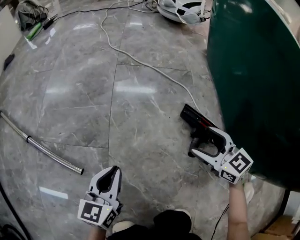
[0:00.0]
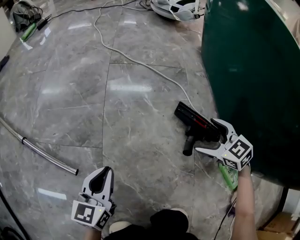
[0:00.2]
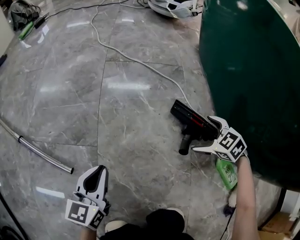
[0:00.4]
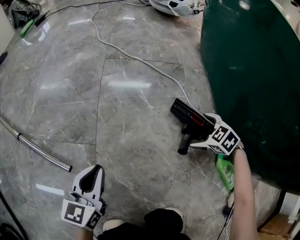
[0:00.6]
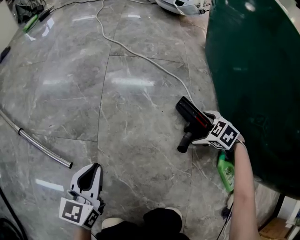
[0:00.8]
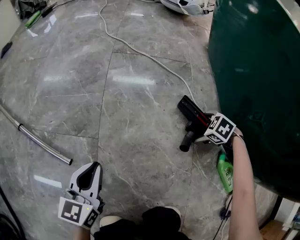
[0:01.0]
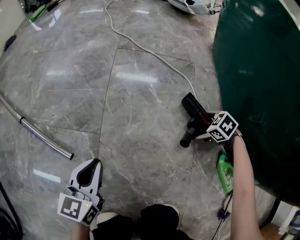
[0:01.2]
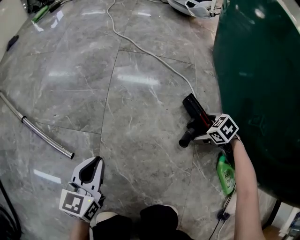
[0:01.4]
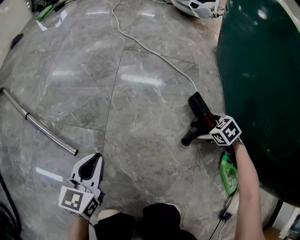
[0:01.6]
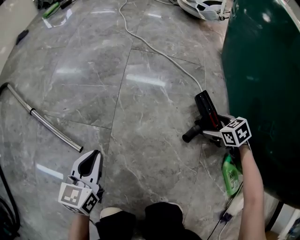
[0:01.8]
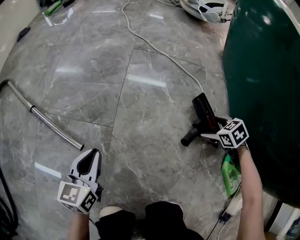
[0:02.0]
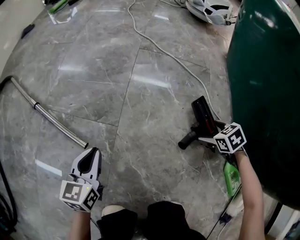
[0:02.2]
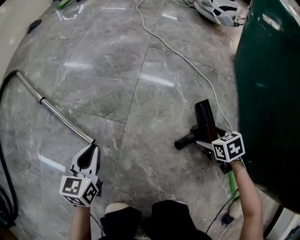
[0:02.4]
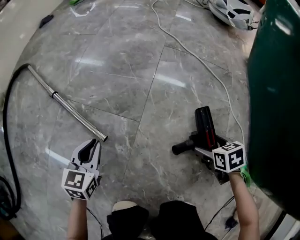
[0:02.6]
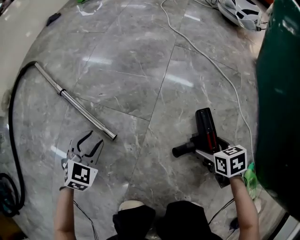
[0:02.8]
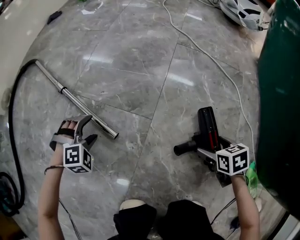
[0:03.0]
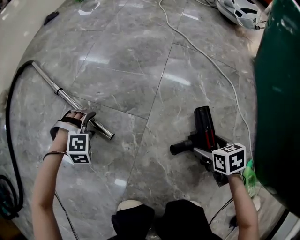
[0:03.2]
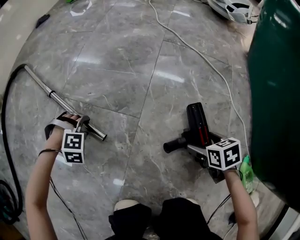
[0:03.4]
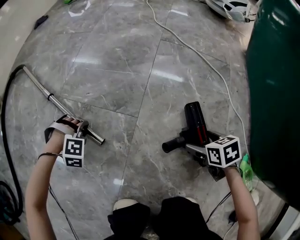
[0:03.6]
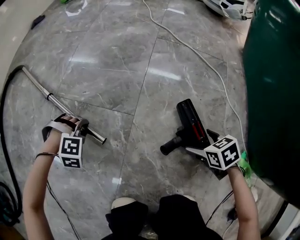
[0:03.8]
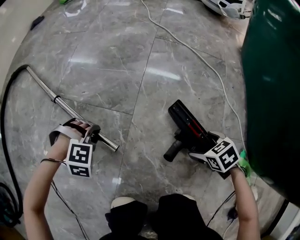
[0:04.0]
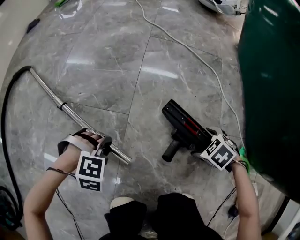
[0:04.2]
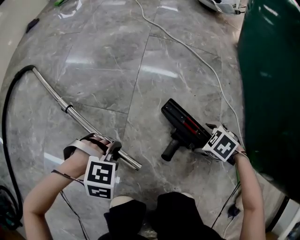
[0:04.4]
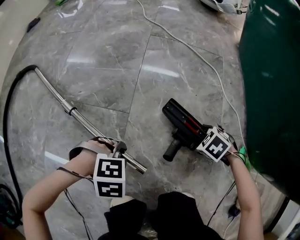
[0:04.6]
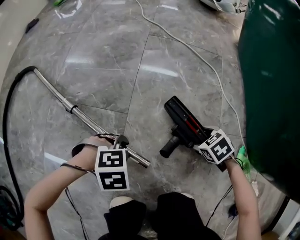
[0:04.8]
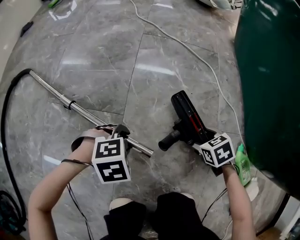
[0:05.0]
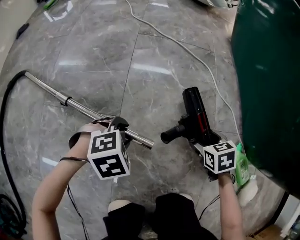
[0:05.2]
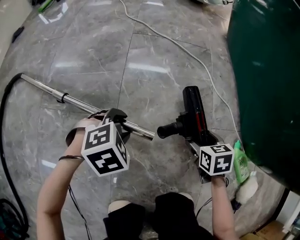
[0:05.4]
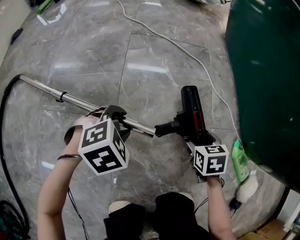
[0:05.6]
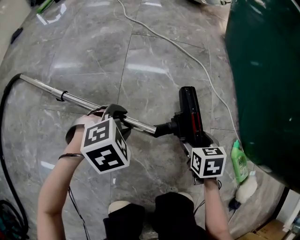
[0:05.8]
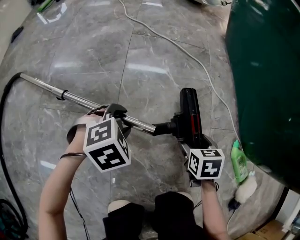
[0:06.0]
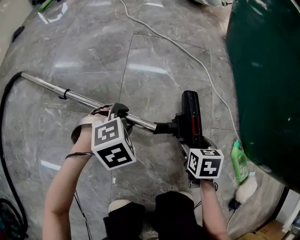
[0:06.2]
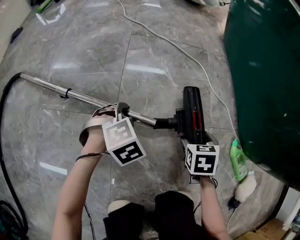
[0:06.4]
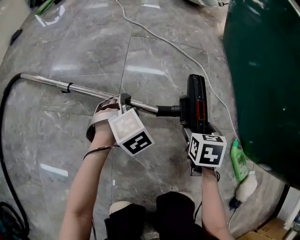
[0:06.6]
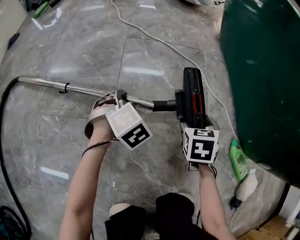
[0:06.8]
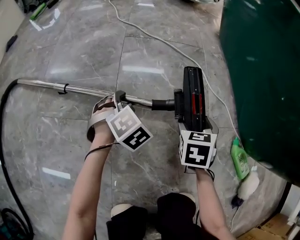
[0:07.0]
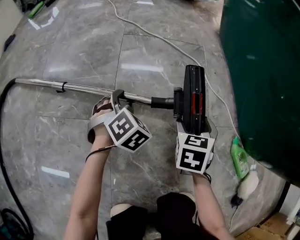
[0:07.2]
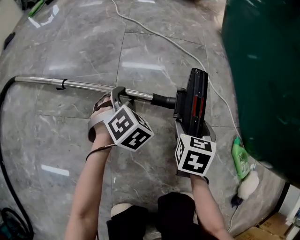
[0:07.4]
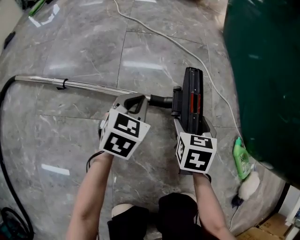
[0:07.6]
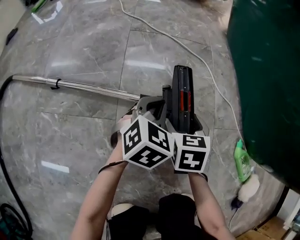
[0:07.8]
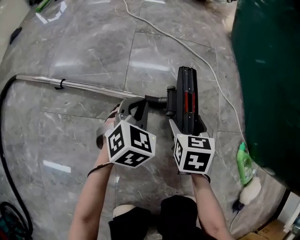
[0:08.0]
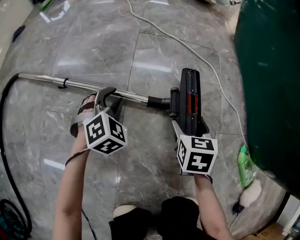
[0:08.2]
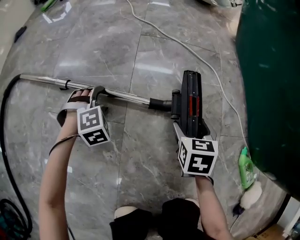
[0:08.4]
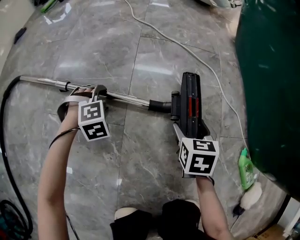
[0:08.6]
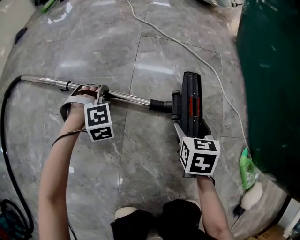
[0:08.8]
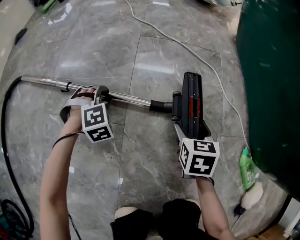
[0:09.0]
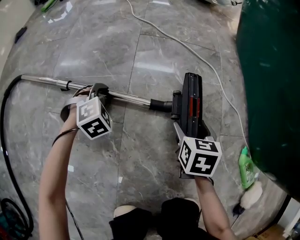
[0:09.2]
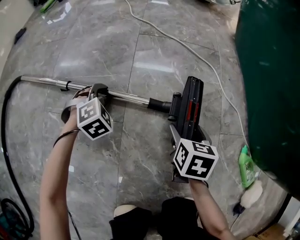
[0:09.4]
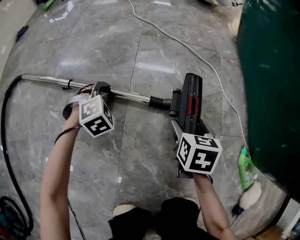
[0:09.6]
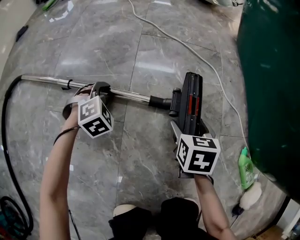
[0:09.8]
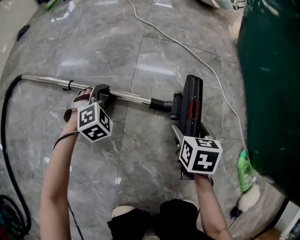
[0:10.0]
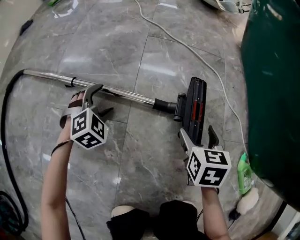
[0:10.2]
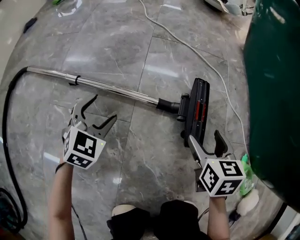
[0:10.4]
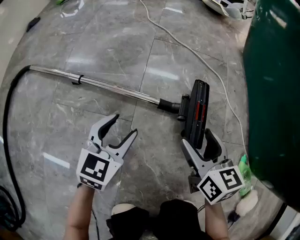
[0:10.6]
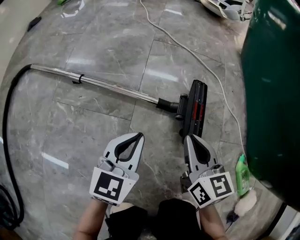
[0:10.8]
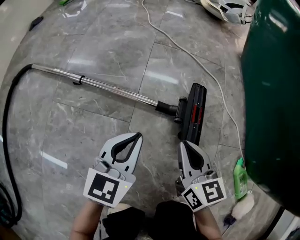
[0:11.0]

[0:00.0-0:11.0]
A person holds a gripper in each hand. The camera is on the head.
0:00.0 to 0:01.6: The right gripper shifts approximately 15 cm downward, points its fingers about 40 degrees further downward, and opens up.
0:01.6 to 0:03.2: The right gripper moves roughly 20 cm, and rotates roughly 20 degrees. Meanwhile the left gripper shifts by approximately 25 cm, rotates around the line of its fingers by approximately 80 degrees, clockwise from behind, and opens up.
0:03.2 to 0:04.8: The left gripper moves roughly 25 cm, rotates approximately 30 degrees, and closes up, while the right gripper moves approximately 5 cm, and swivels roughly 20 degrees.
0:04.8 to 0:06.2: The right gripper rotates some 50 degrees. The left gripper ends up approximately 15 cm from where it was, and rotates approximately 20 degrees.
0:06.2 to 0:07.8: The left gripper moves forward and to the right, about 10 cm, changes its angle by approximately 40 degrees, and closes up; the right gripper travels to the left and forward by some 10 cm.
0:07.8 to 0:09.4: The left gripper shifts approximately 20 cm to the left, rotates roughly 40 degrees, and opens.
0:09.4 to 0:11.0: The left gripper heads upward, backward and to the right, covering some 25 cm, tips its fingers upward by roughly 40 degrees, and closes. Meanwhile the right gripper travels upward and backward by approximately 10 cm, turns by approximately 40 degrees, and closes.

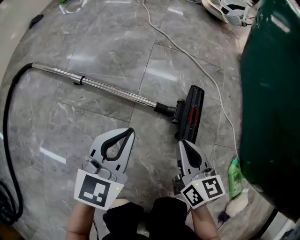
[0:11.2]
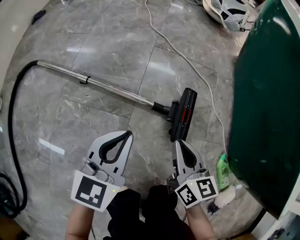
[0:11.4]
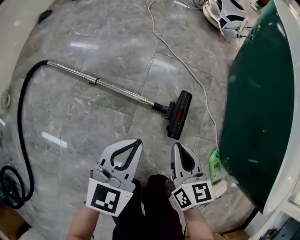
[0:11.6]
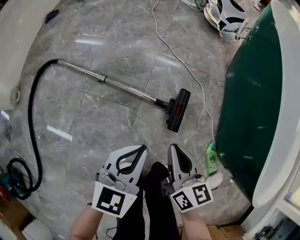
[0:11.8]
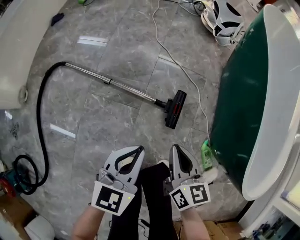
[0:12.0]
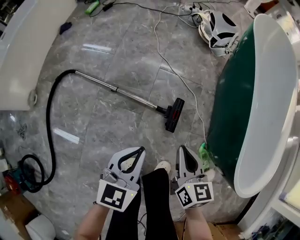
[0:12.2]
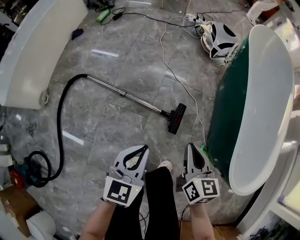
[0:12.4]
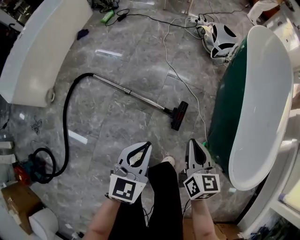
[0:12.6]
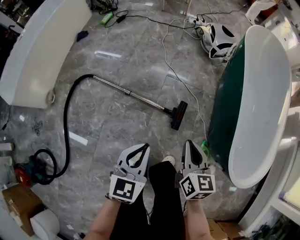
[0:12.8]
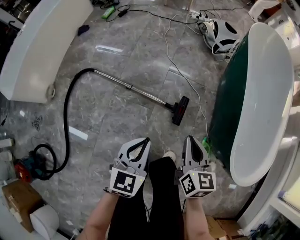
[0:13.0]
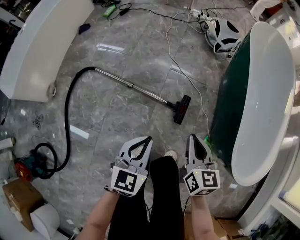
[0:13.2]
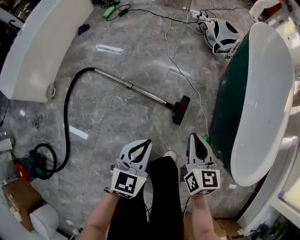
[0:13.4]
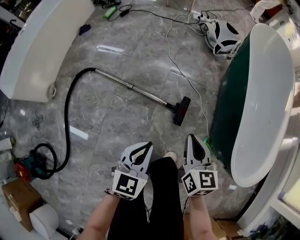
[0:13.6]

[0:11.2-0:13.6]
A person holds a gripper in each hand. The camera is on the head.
0:11.2 to 0:12.4: Both grippers move upward, some 50 cm.
0:12.4 to 0:13.6: The right gripper shifts by about 5 cm.

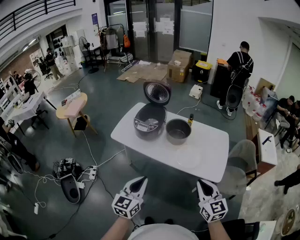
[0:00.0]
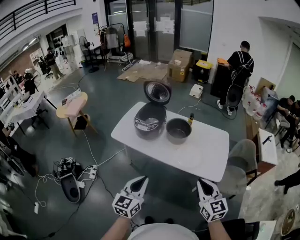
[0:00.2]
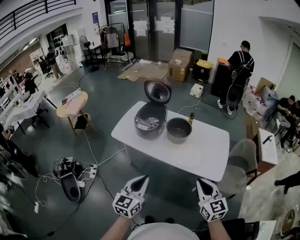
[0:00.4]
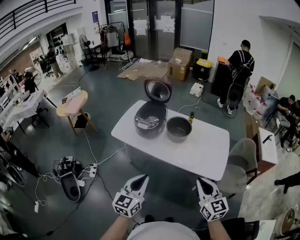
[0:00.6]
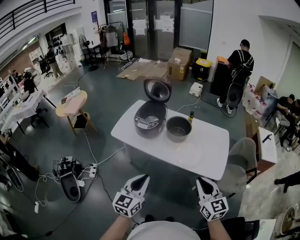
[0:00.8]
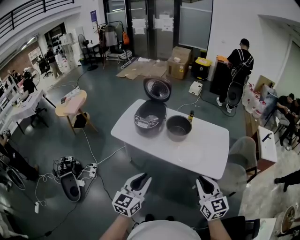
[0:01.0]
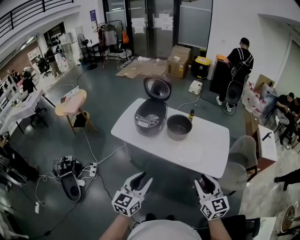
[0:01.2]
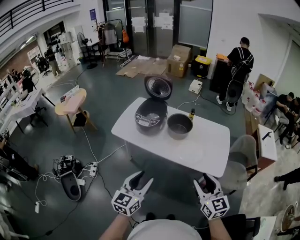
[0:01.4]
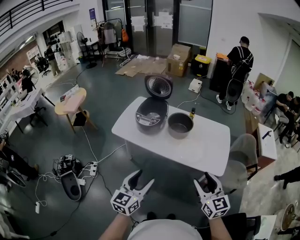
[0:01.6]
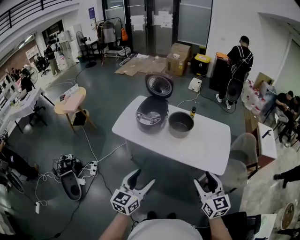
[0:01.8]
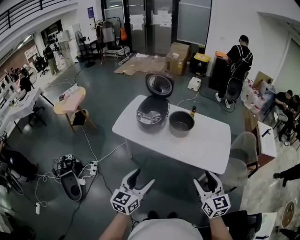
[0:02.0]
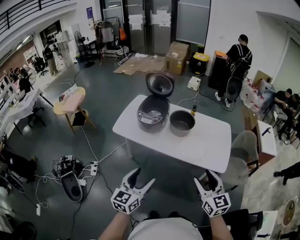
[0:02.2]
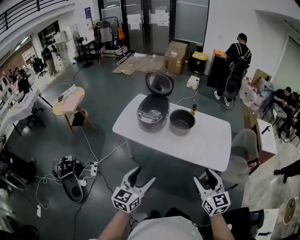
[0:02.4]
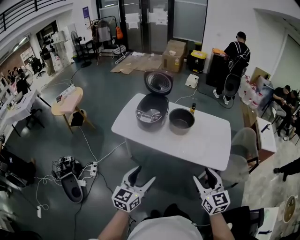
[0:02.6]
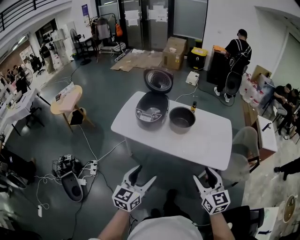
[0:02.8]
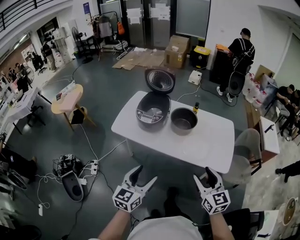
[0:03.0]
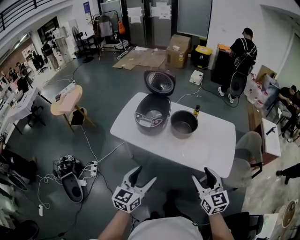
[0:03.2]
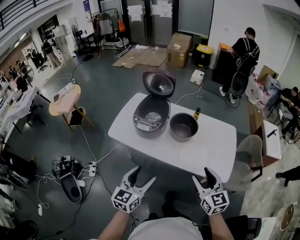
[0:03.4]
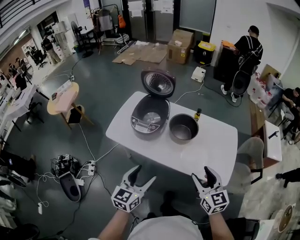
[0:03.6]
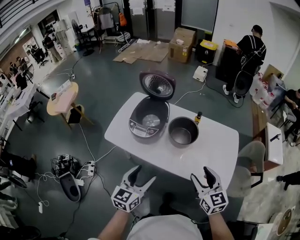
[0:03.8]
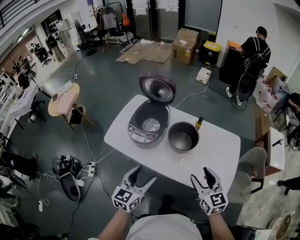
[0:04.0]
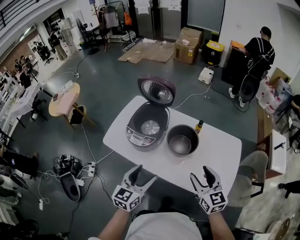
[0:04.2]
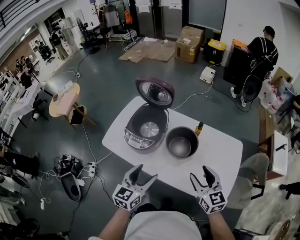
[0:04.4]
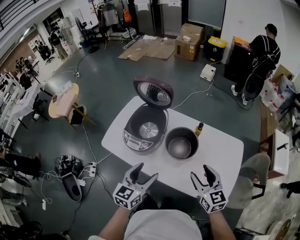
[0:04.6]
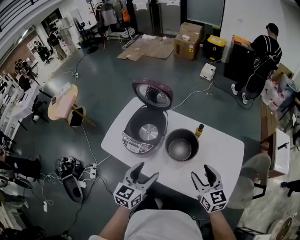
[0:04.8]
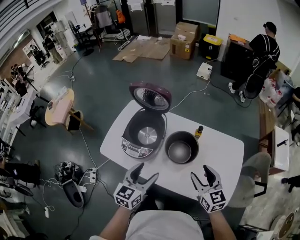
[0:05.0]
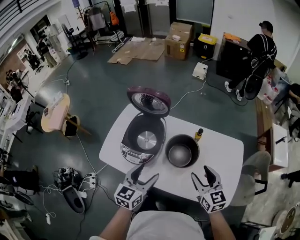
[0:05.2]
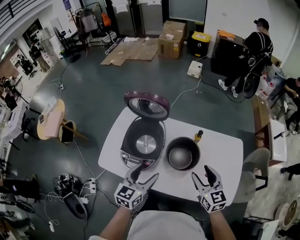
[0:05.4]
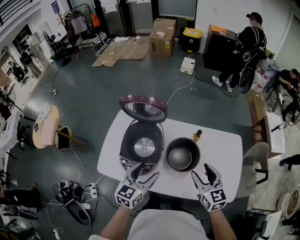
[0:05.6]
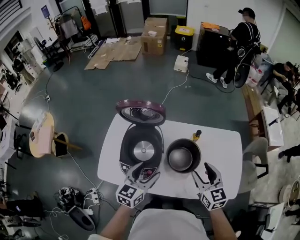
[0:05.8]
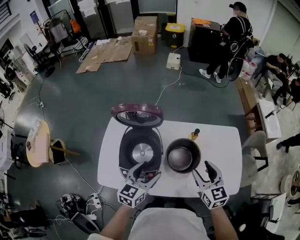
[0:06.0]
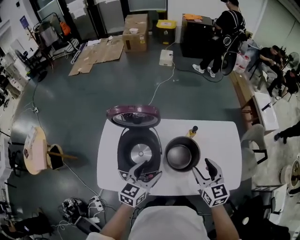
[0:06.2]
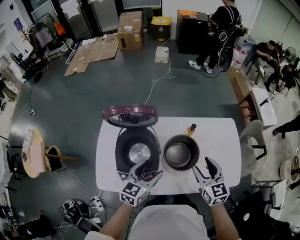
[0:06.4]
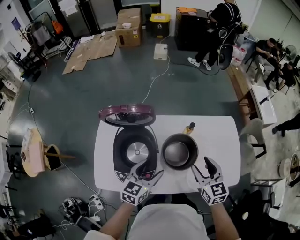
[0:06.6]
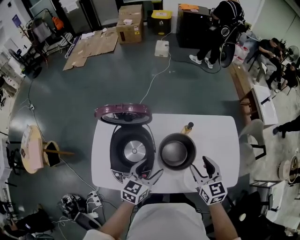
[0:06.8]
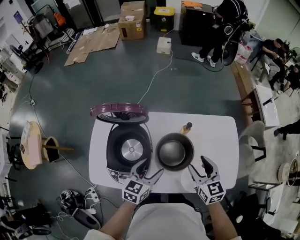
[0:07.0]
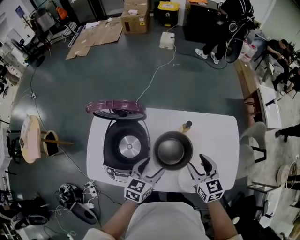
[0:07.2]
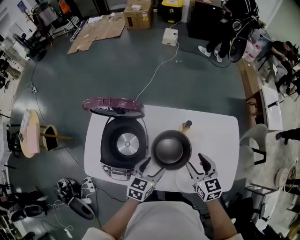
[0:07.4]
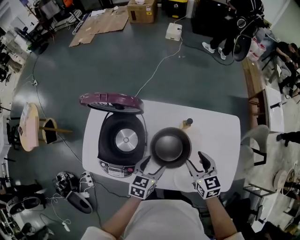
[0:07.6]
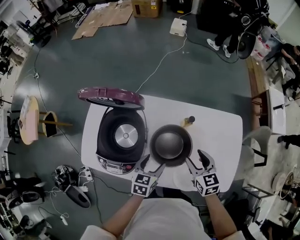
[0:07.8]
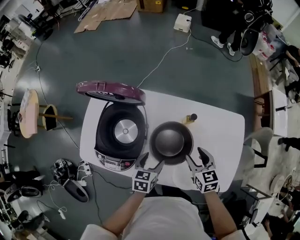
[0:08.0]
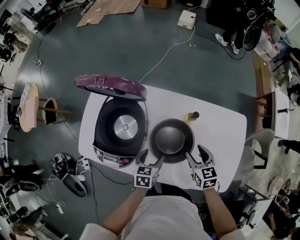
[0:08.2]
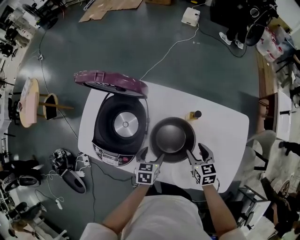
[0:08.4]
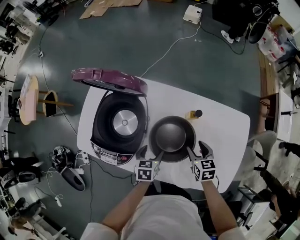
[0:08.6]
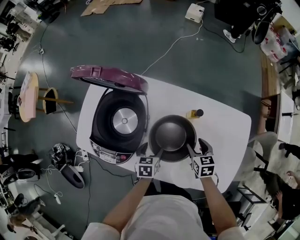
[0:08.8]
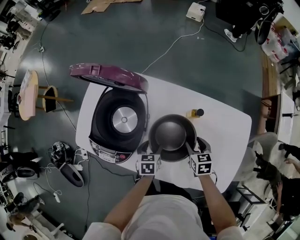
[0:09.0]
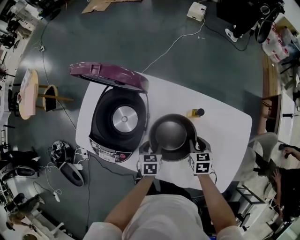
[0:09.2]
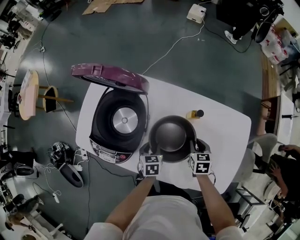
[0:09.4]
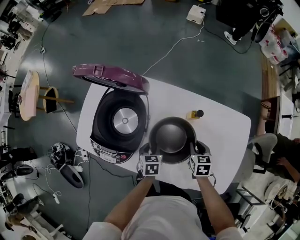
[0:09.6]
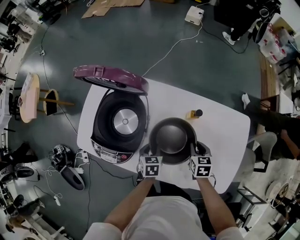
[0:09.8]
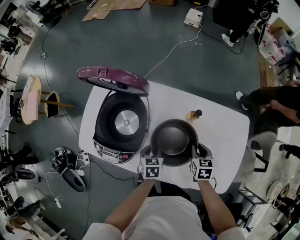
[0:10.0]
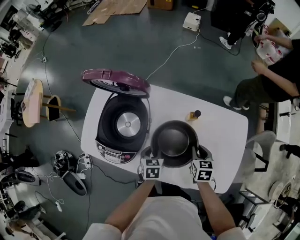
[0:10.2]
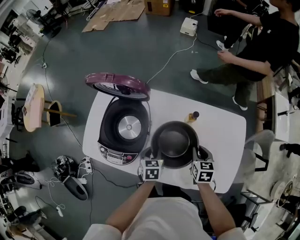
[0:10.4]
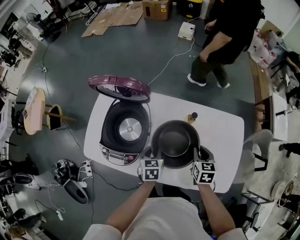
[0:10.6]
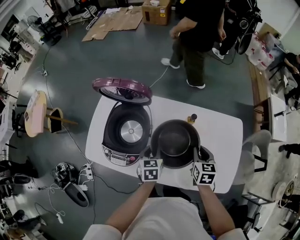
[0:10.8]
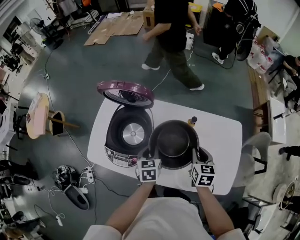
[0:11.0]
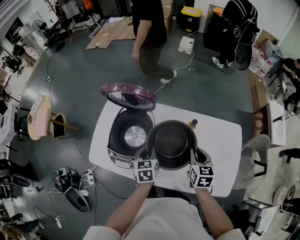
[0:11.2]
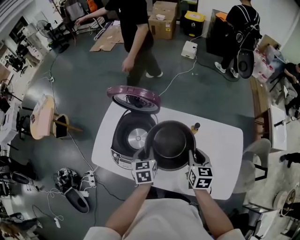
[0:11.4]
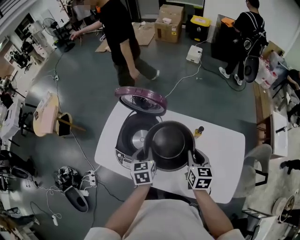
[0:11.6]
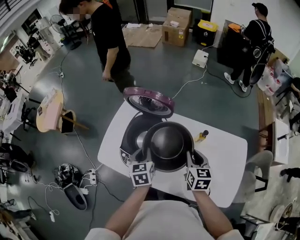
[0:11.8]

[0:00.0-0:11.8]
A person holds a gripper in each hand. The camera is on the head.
0:00.0 to 0:01.4: The right gripper opens its fingers, while the left gripper opens its fingers.
0:01.4 to 0:03.0: The left gripper shifts by approximately 5 cm, while the right gripper ends up some 5 cm from where it was.
0:03.0 to 0:04.4: Both grippers move forward, about 30 cm.
0:04.4 to 0:06.0: The right gripper heads forward and to the left, covering roughly 15 cm, and swivels some 20 degrees. Meanwhile the left gripper is displaced forward by roughly 20 cm, and turns by roughly 20 degrees.
0:06.0 to 0:07.4: The right gripper goes some 10 cm downward, forward and to the right, while the left gripper moves to the right, downward and forward, some 15 cm.
0:07.4 to 0:08.8: The two grippers go some 20 cm downward. The left gripper turns by some 30 degrees, while the right gripper turns by about 20 degrees.
0:08.8 to 0:10.4: Both grippers travel together upward, roughly 5 cm. The right gripper closes. The left gripper closes up.
0:10.4 to 0:11.8: The grippers both shift upward and to the left by some 20 cm. The left gripper turns by roughly 20 degrees.
